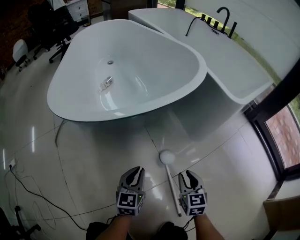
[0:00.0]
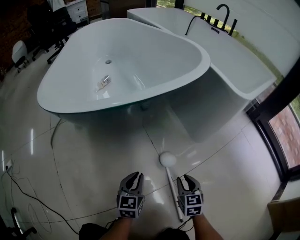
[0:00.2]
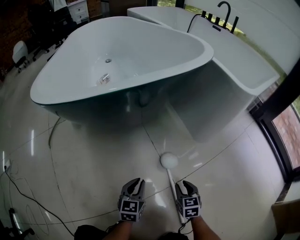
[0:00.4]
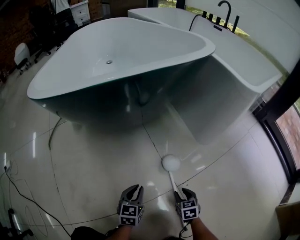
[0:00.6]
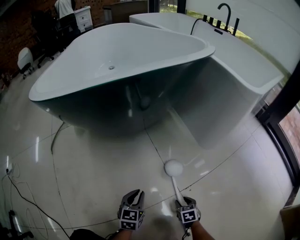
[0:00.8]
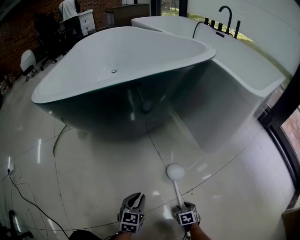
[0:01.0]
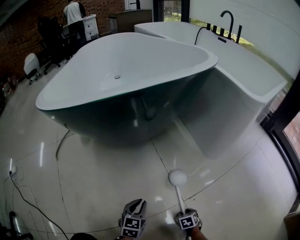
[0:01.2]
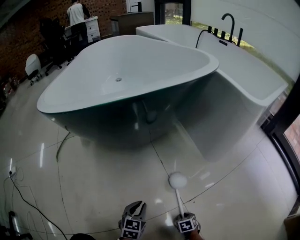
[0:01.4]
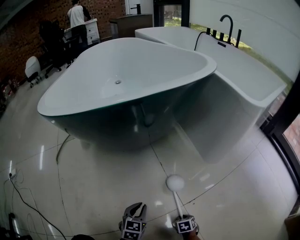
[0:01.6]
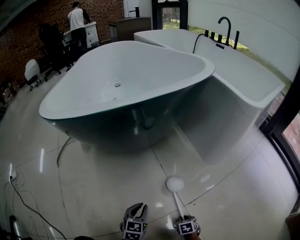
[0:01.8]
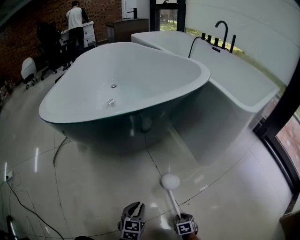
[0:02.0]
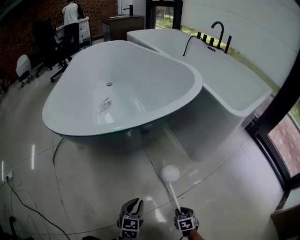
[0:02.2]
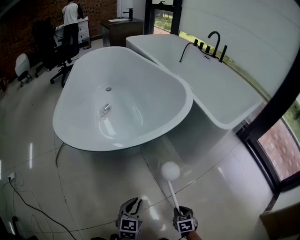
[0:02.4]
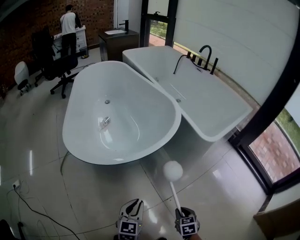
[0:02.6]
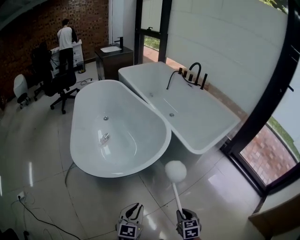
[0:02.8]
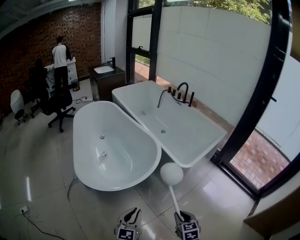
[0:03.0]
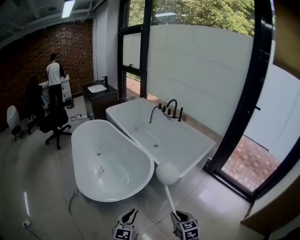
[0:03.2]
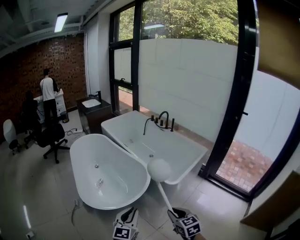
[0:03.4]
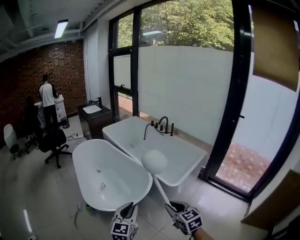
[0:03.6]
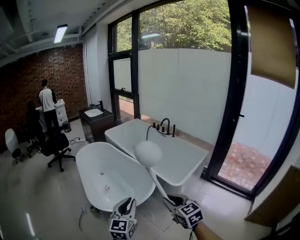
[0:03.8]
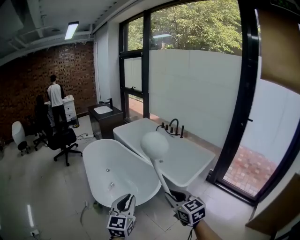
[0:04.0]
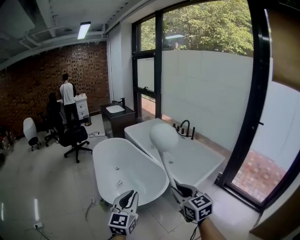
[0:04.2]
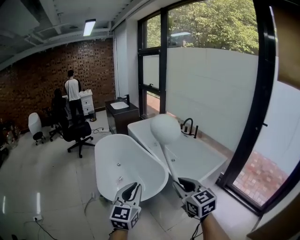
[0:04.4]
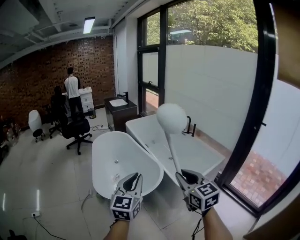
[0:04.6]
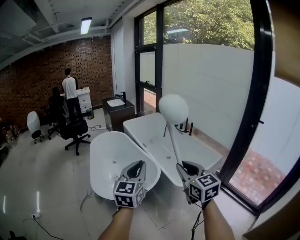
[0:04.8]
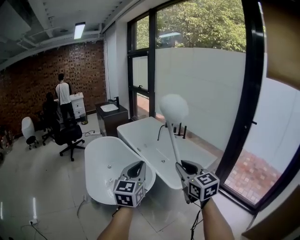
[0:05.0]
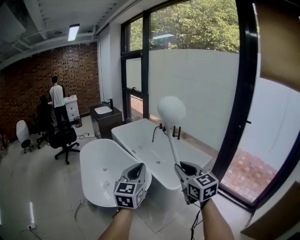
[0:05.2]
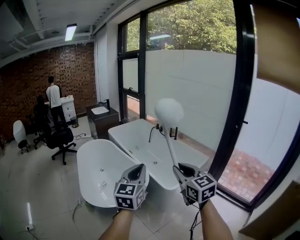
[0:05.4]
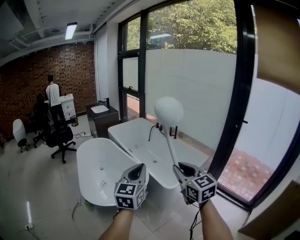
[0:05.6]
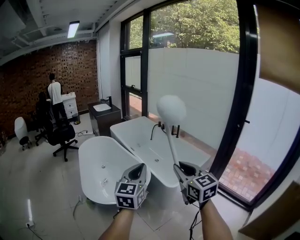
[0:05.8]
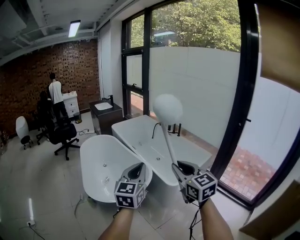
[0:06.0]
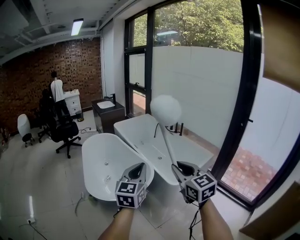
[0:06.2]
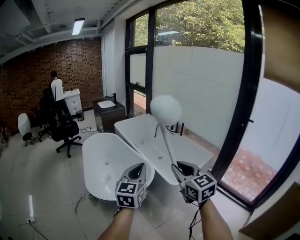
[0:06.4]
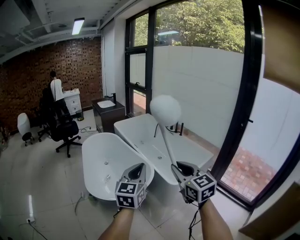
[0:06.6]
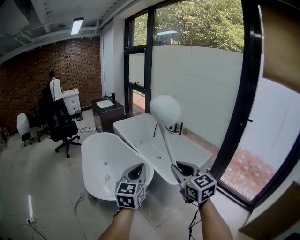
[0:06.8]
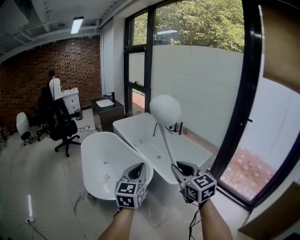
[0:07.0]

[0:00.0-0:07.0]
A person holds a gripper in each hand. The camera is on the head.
0:00.0 to 0:01.4: The left gripper is displaced downward by some 30 cm, while the right gripper moves downward, some 50 cm, and angles its fingers downward, by approximately 40 degrees.
0:01.4 to 0:02.8: The two grippers go roughly 80 cm upward. The right gripper changes its angle by about 30 degrees.
0:02.8 to 0:04.2: Both grippers move upward, some 70 cm. The right gripper tips its fingers upward by approximately 40 degrees. The left gripper turns by approximately 20 degrees.
0:04.2 to 0:05.6: Both grippers travel together to the right and upward, roughly 25 cm.
0:05.6 to 0:07.0: The right gripper moves to the left, about 5 cm.

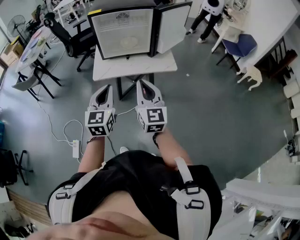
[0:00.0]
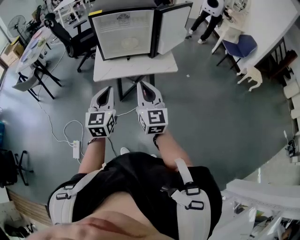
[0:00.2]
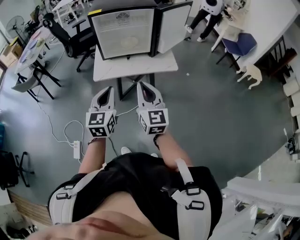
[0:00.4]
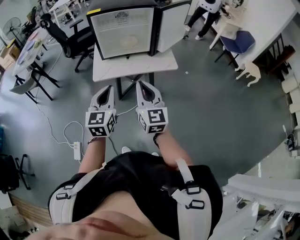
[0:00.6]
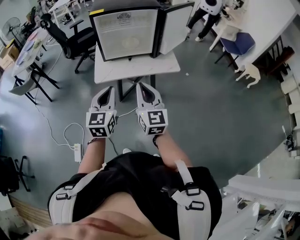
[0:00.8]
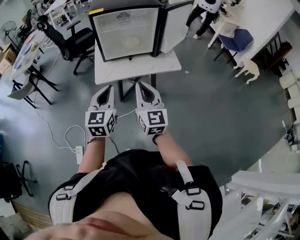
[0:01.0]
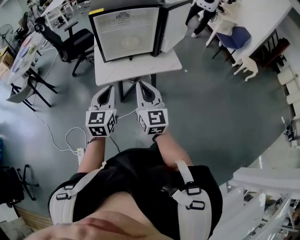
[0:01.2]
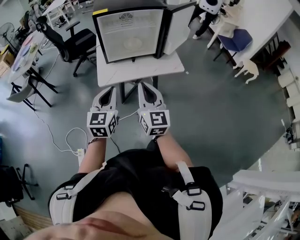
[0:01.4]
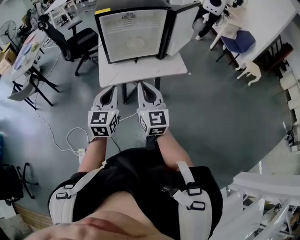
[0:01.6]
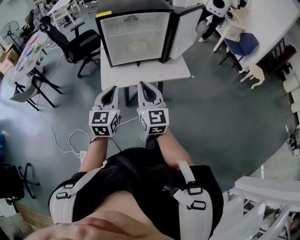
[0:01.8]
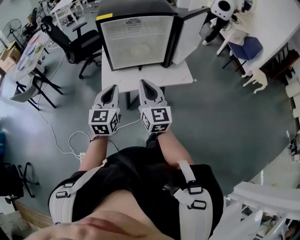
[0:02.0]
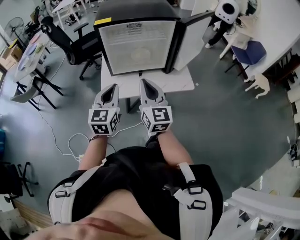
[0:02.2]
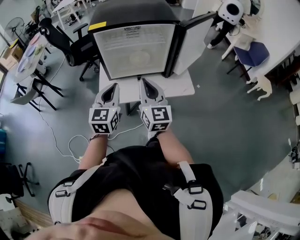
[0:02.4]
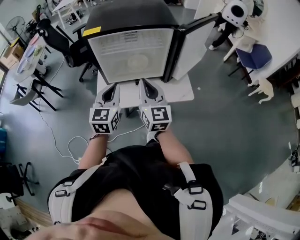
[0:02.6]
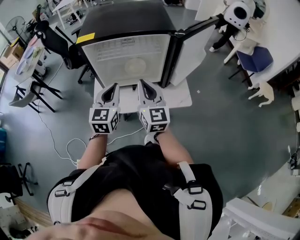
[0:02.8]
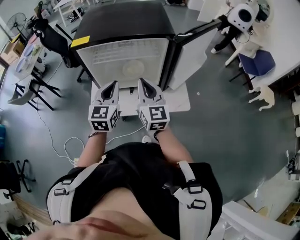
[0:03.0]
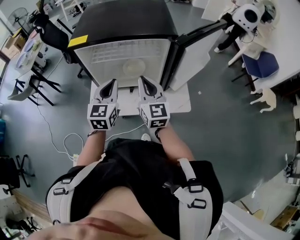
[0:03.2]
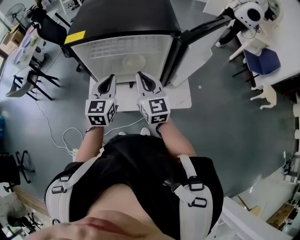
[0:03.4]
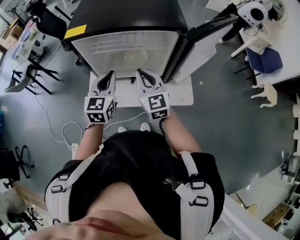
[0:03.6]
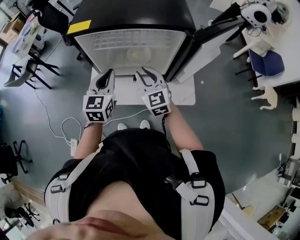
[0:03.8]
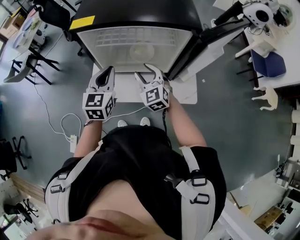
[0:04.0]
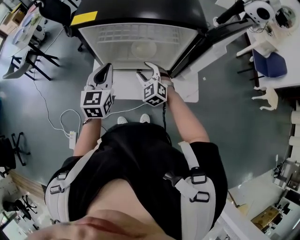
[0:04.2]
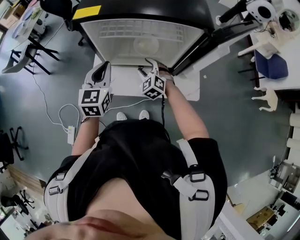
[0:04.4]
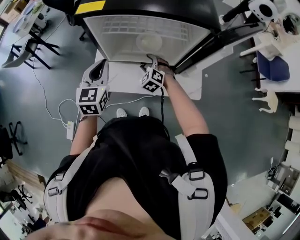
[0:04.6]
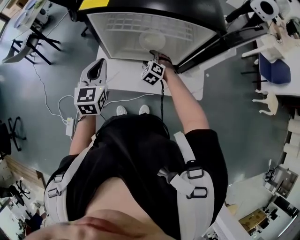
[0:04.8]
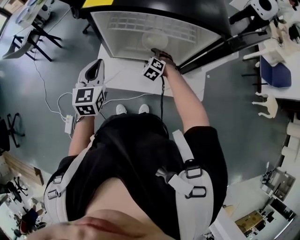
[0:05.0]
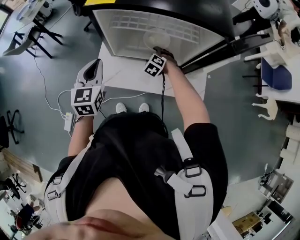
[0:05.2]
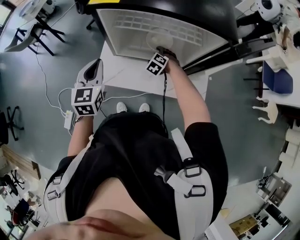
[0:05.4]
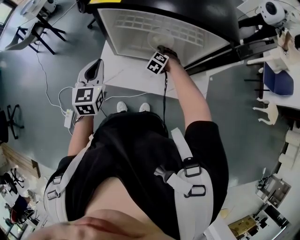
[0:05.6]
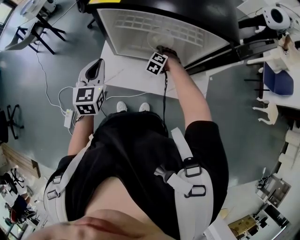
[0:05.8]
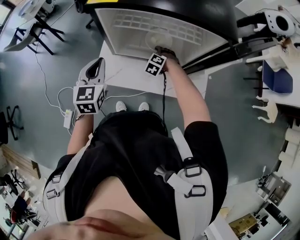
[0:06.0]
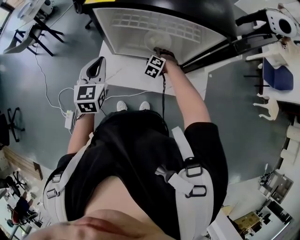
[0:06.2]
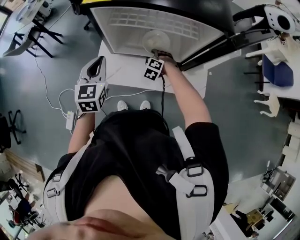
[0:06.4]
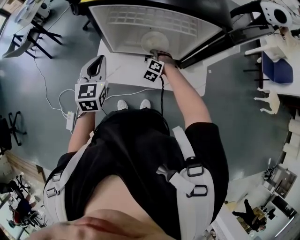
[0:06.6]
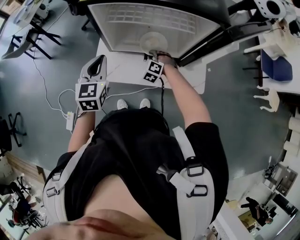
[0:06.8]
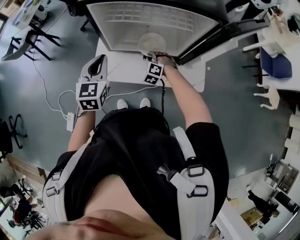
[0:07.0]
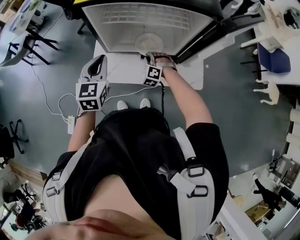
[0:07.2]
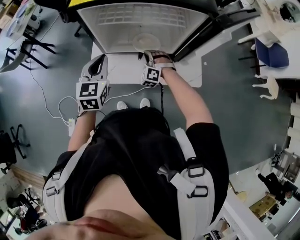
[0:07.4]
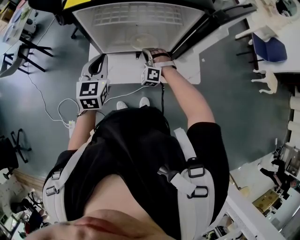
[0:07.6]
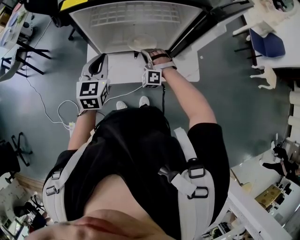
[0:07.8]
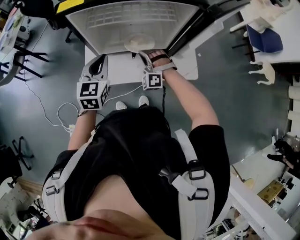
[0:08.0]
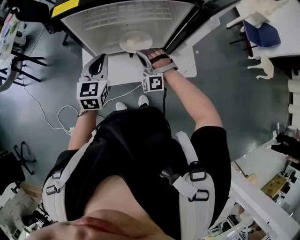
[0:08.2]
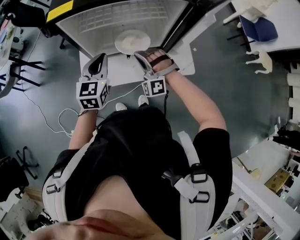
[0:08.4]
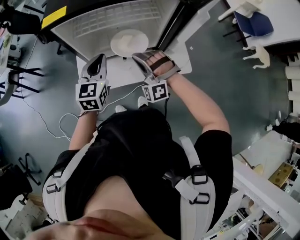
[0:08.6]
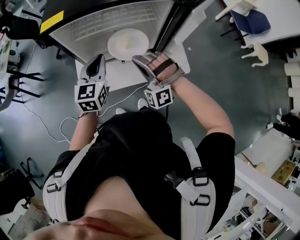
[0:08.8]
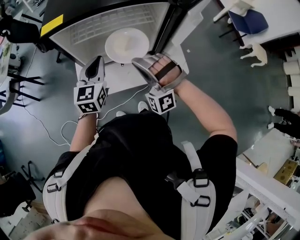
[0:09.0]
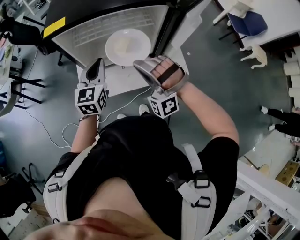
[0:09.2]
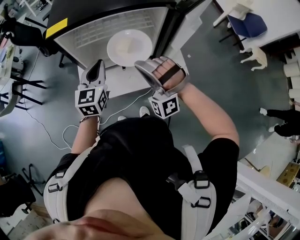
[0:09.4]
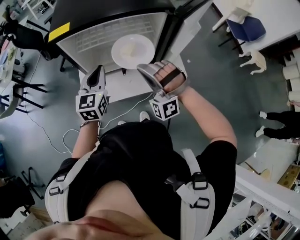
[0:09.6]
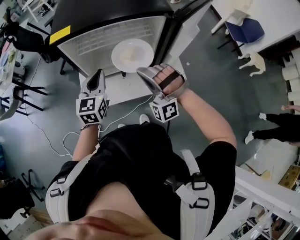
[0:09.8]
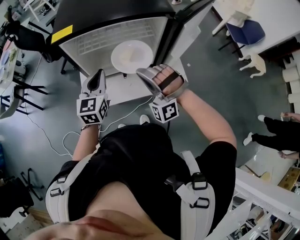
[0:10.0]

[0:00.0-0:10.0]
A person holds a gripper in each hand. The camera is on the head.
0:00.0 to 0:01.4: The right gripper moves to the left, some 10 cm. The left gripper is displaced to the left and forward by about 10 cm.
0:01.4 to 0:02.8: Both grippers travel together forward, about 25 cm.
0:02.8 to 0:04.2: The right gripper moves downward and forward, about 25 cm, points its fingers roughly 30 degrees further downward, and opens up. Meanwhile the left gripper moves forward, about 10 cm.
0:04.2 to 0:05.8: The left gripper travels to the left by roughly 10 cm; the right gripper moves downward and forward, approximately 20 cm, tilts its fingers approximately 40 degrees downward, and opens its fingers.
0:05.8 to 0:07.2: The right gripper goes some 5 cm backward, changes its angle by some 20 degrees, and closes its fingers.
0:07.2 to 0:08.6: The right gripper goes approximately 20 cm upward and backward, and turns by roughly 30 degrees, while the left gripper is displaced to the right by about 5 cm.
0:08.6 to 0:10.0: The right gripper is displaced upward by approximately 10 cm.

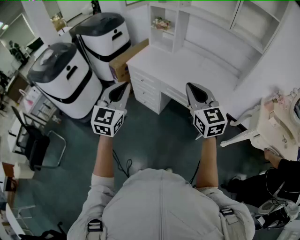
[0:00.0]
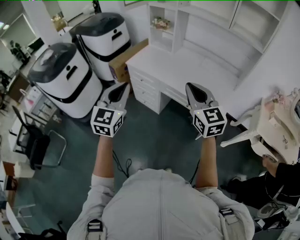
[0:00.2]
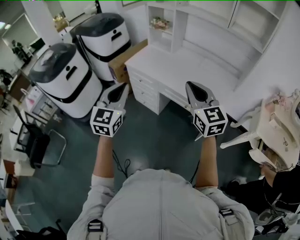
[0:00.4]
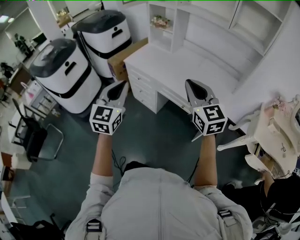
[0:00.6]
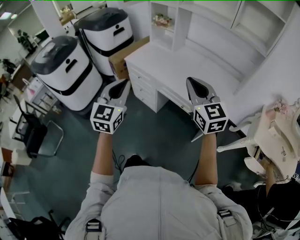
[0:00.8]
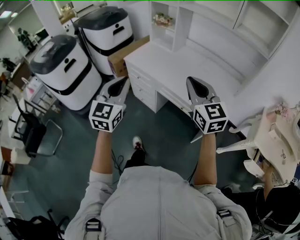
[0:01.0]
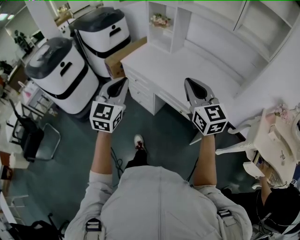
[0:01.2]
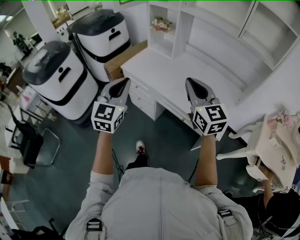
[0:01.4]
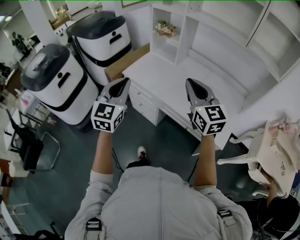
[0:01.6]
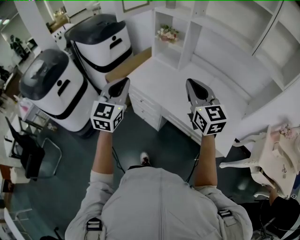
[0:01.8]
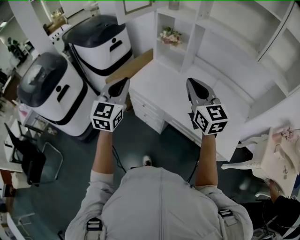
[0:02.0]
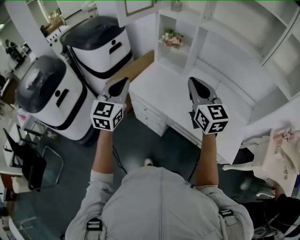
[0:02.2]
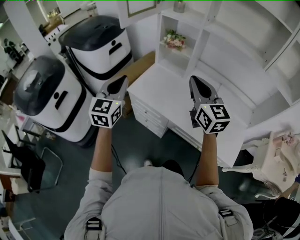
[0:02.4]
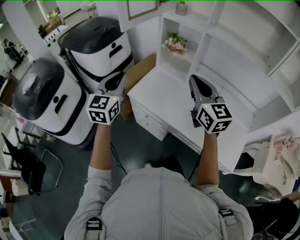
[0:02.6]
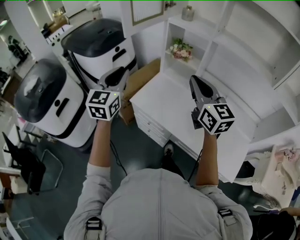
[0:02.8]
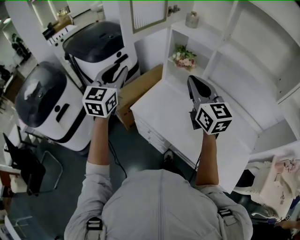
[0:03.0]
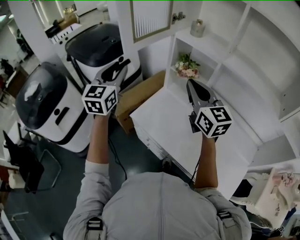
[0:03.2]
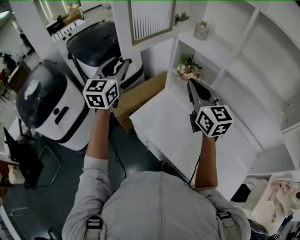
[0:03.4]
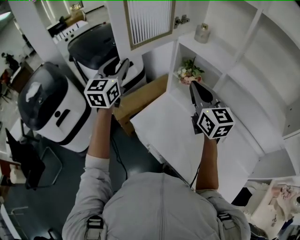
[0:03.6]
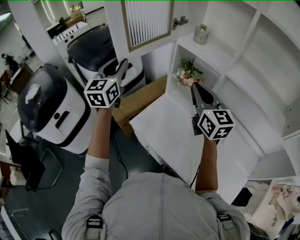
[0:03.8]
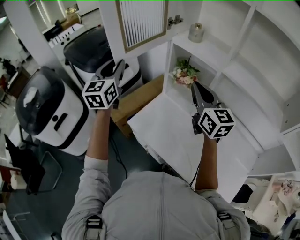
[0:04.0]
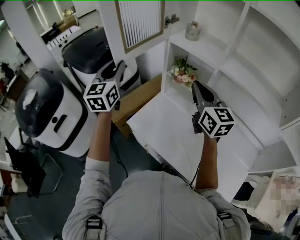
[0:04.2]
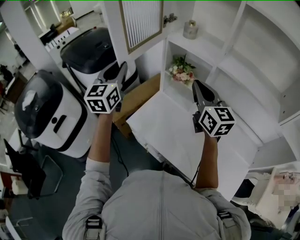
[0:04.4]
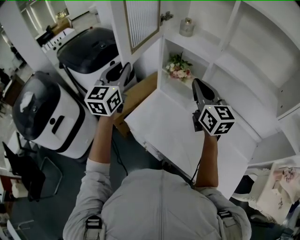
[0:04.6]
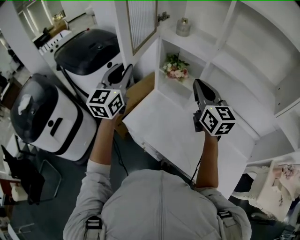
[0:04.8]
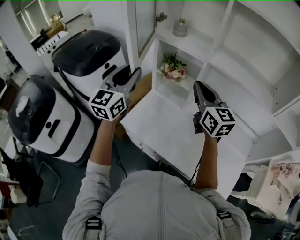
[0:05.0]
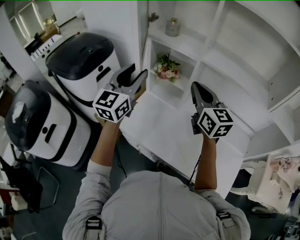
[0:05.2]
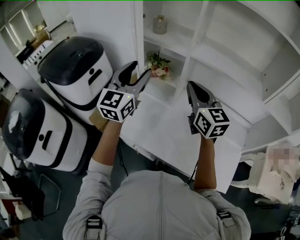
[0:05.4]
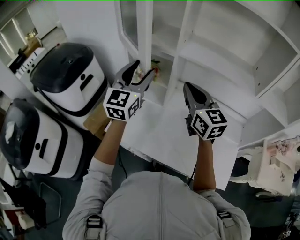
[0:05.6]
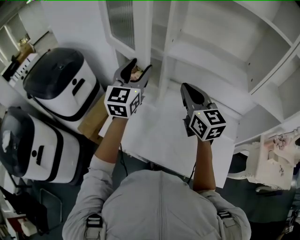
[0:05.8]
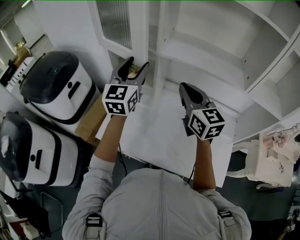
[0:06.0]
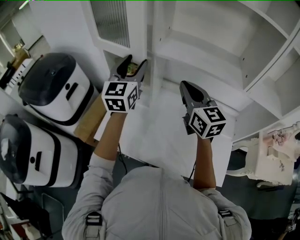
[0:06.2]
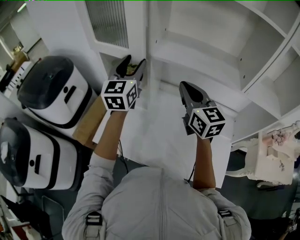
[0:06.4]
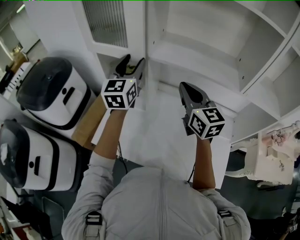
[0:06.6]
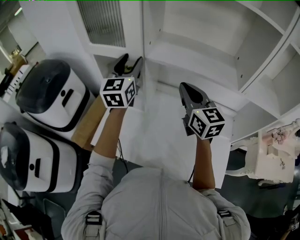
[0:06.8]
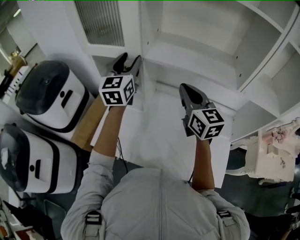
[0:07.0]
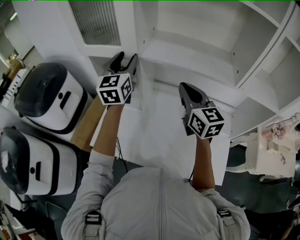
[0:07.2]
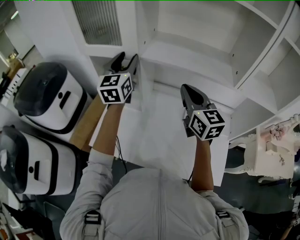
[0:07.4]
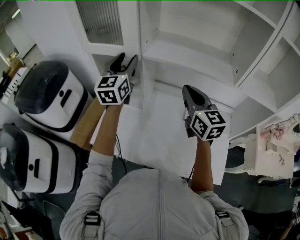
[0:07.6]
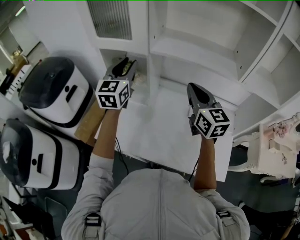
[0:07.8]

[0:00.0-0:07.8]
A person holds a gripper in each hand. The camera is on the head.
0:00.0 to 0:01.6: The grippers both shift forward by approximately 20 cm.
0:01.6 to 0:03.2: The two grippers go about 35 cm forward. The left gripper opens up.
0:03.2 to 0:04.6: Both grippers travel together to the right, about 5 cm.
0:04.6 to 0:06.2: The right gripper goes about 15 cm to the right. Meanwhile the left gripper heads to the right, covering some 25 cm, and opens up.
0:06.2 to 0:07.8: The left gripper closes; the right gripper moves about 5 cm.
